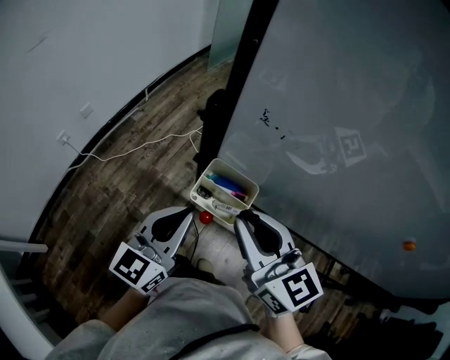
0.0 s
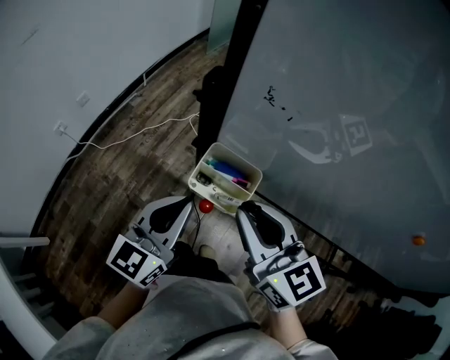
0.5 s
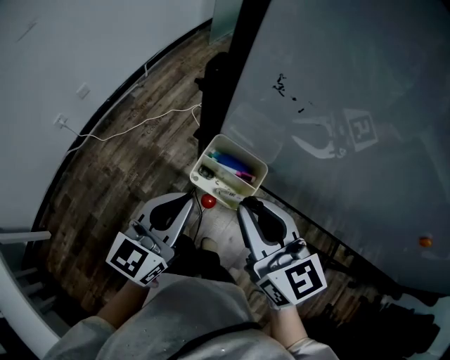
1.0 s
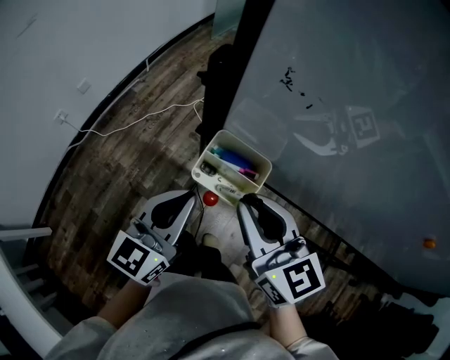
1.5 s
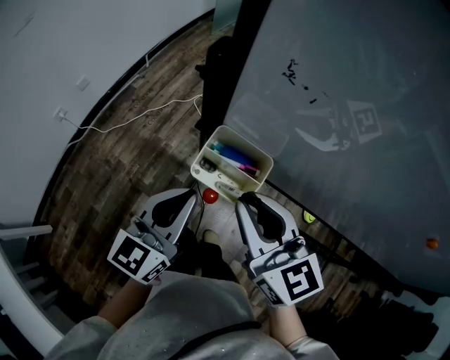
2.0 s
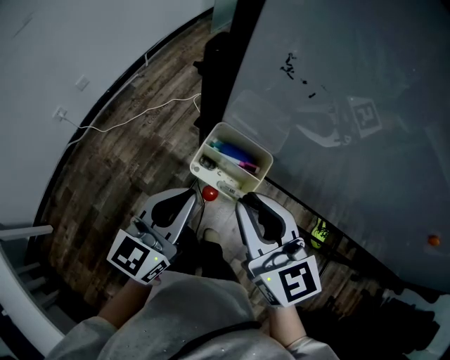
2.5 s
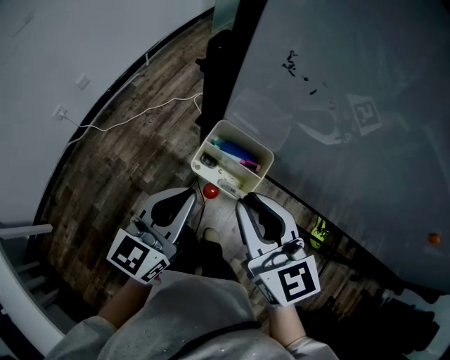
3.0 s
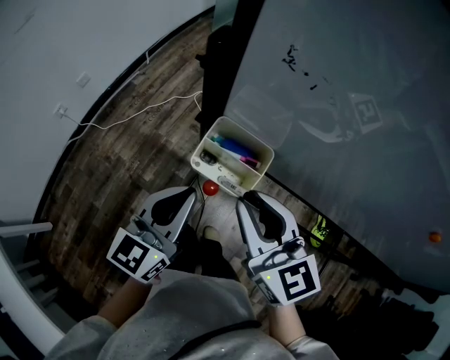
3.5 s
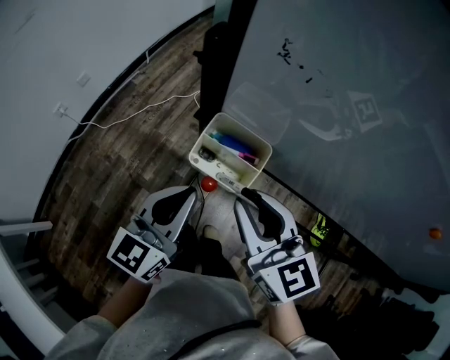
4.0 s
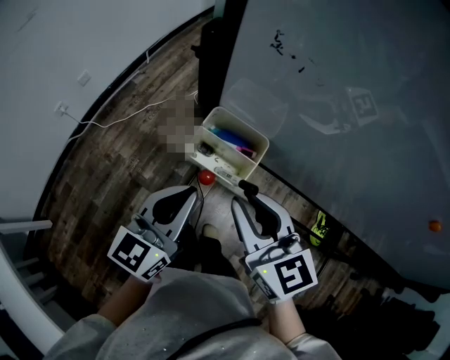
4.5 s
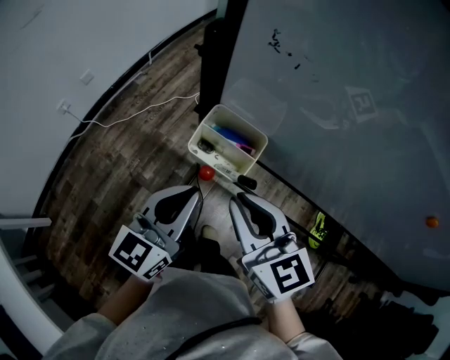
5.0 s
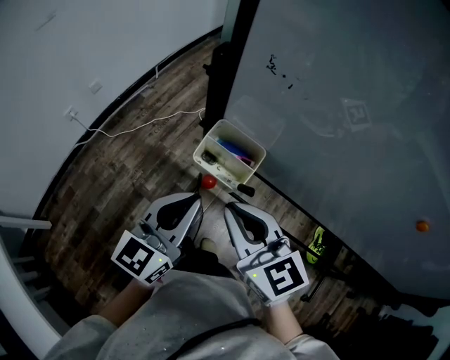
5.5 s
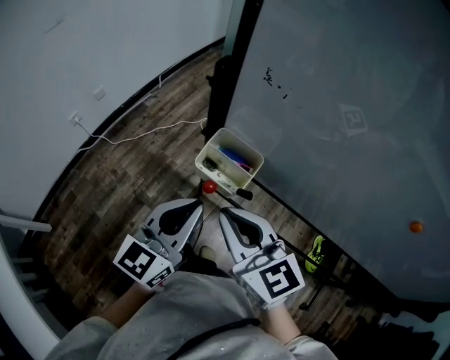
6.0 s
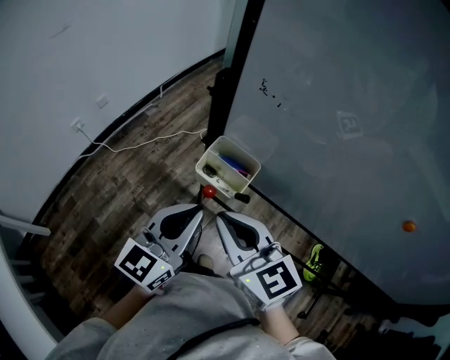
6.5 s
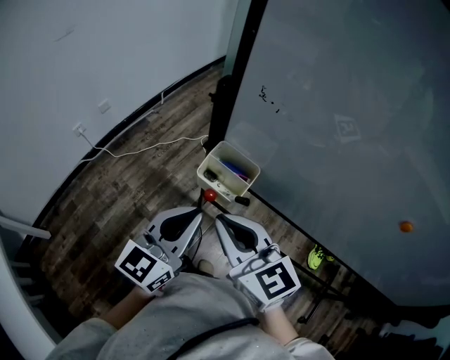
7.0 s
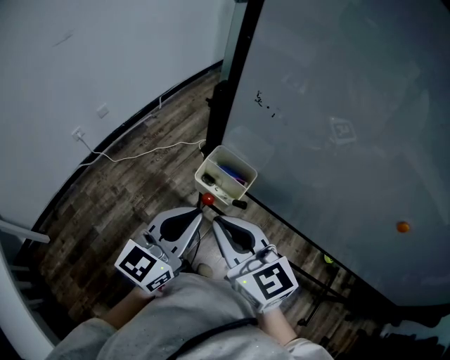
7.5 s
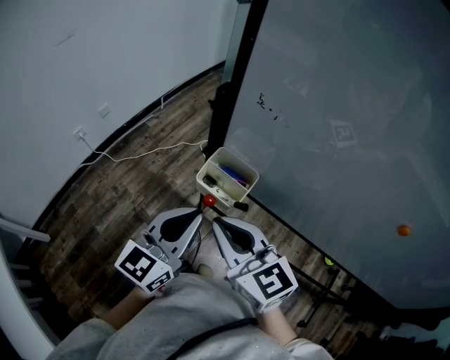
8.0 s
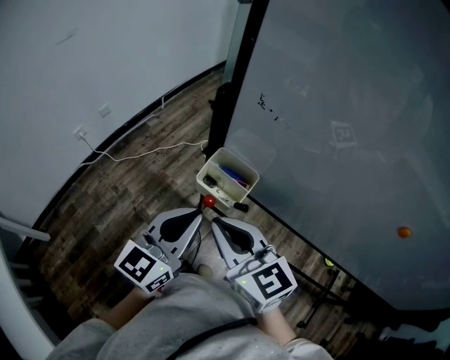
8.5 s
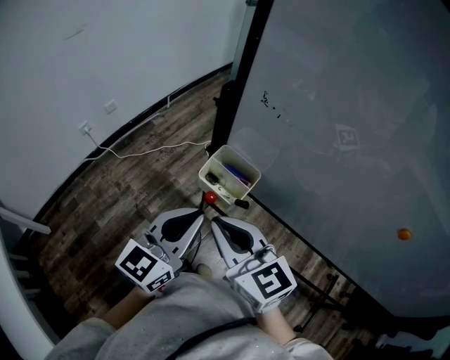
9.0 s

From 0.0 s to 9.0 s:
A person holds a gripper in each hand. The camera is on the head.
From 0.0 s to 2.0 s: The right gripper goes some 5 cm downward.
From 2.0 s to 4.5 s: The grippers move only a little.
From 4.5 s to 7.0 s: Both grippers move upward, some 5 cm.
From 7.0 s to 9.0 s: The two grippers keep their place.

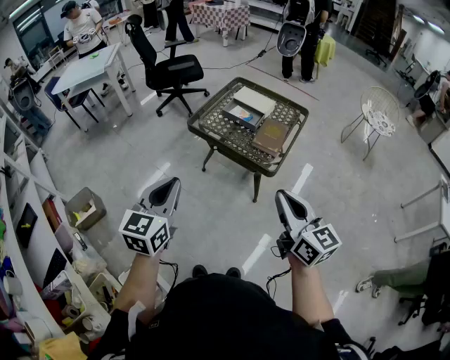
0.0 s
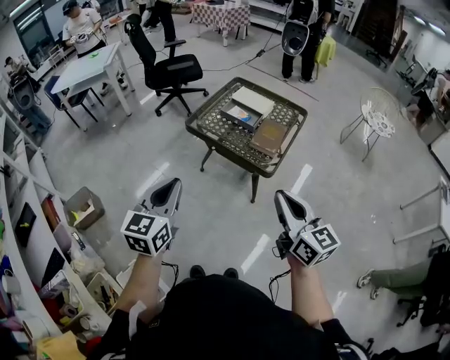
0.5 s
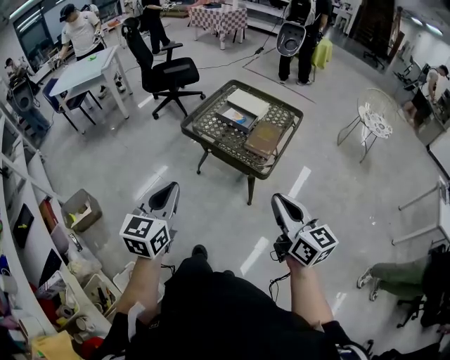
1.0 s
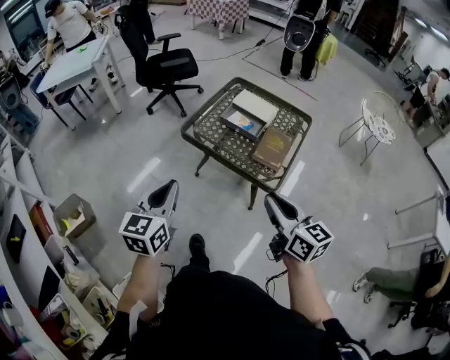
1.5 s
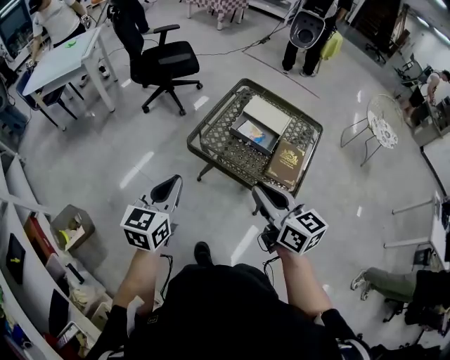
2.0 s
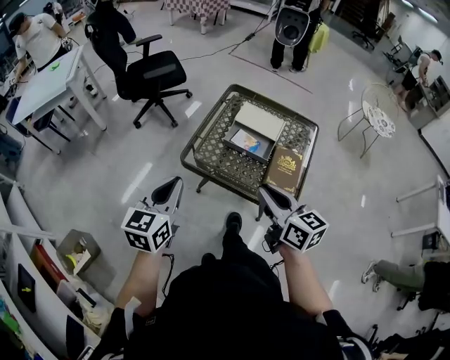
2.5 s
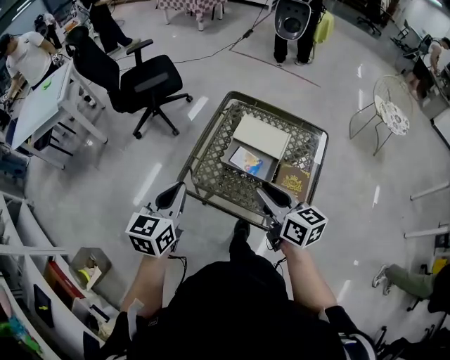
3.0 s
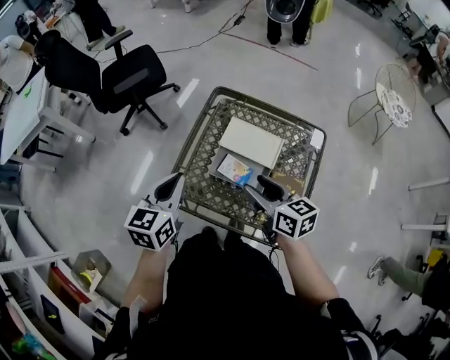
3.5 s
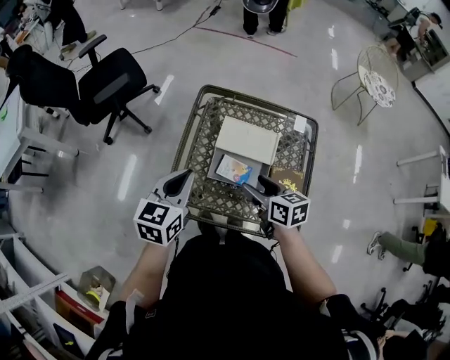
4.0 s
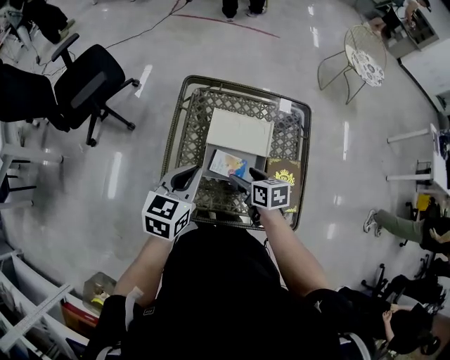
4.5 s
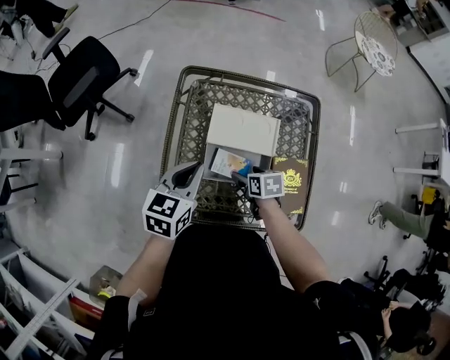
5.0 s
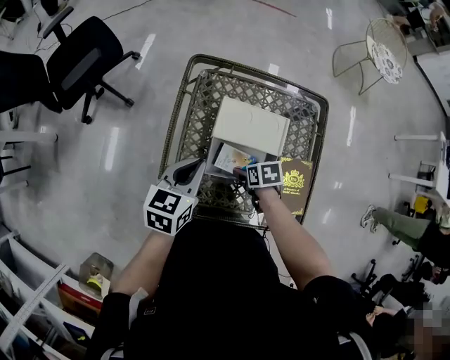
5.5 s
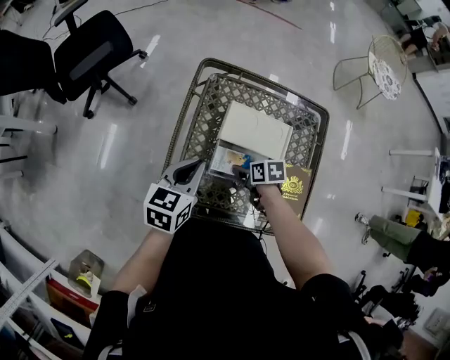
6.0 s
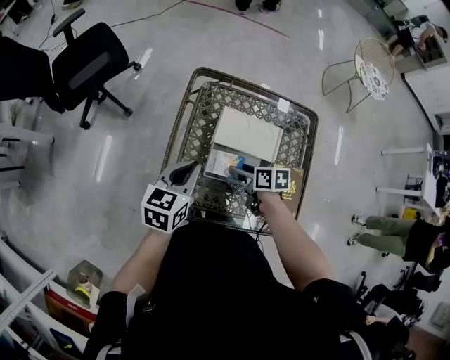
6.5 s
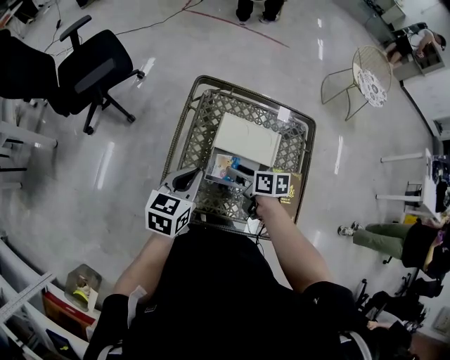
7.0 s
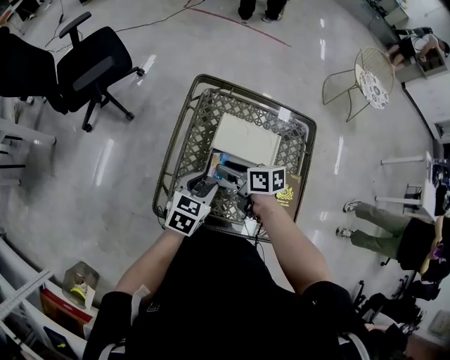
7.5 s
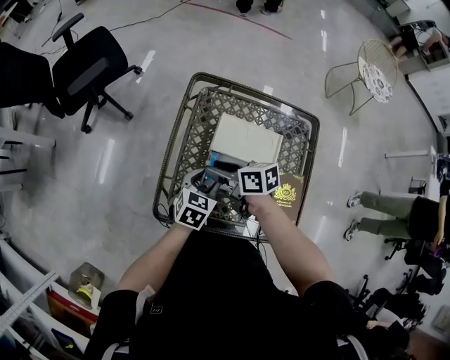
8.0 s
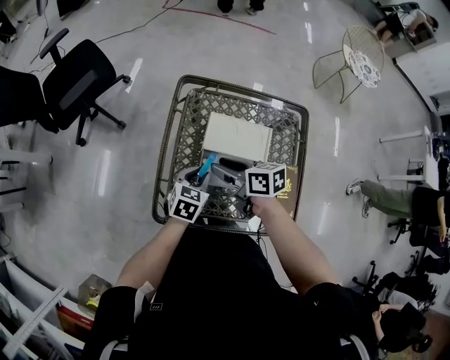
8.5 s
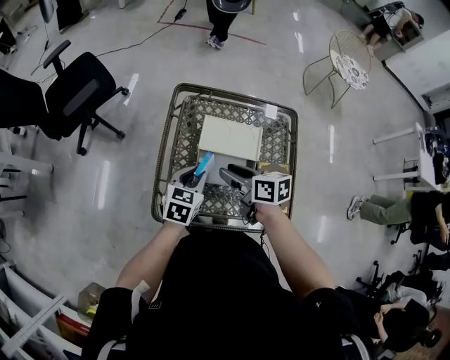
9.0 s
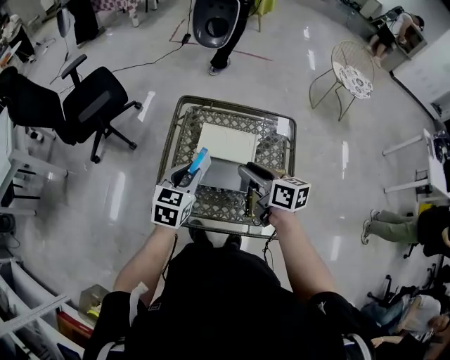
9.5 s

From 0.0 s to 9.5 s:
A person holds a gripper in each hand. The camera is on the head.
From 0.0 s to 2.0 s: The right gripper goes about 30 cm forward and to the left. The left gripper is displaced forward by approximately 25 cm.
From 2.0 s to 4.0 s: The right gripper travels forward and downward by approximately 35 cm, rotates roughly 30 degrees, and opens its fingers. The left gripper shifts about 35 cm forward, and changes its angle by approximately 20 degrees.
From 4.0 s to 5.5 s: The right gripper heads downward, covering approximately 20 cm, and angles its fingers downward, by some 40 degrees. Meanwhile the left gripper moves downward and forward, approximately 10 cm.
From 5.5 s to 7.5 s: The right gripper travels upward and to the left by some 15 cm, tips its fingers upward by roughly 40 degrees, and closes up, while the left gripper shifts by some 5 cm, and opens up.
From 7.5 s to 9.5 s: The right gripper shifts approximately 20 cm upward, to the right and backward, and swivels roughly 20 degrees, while the left gripper travels upward by about 10 cm.

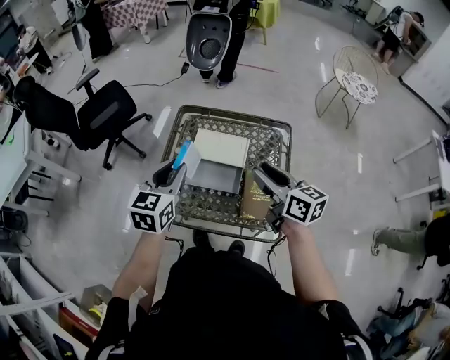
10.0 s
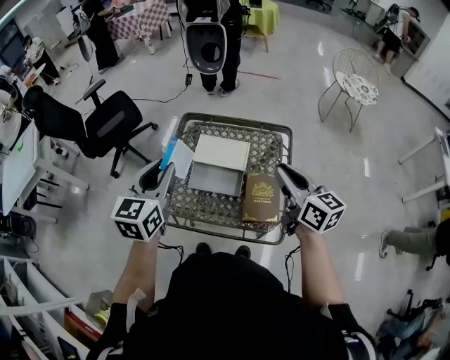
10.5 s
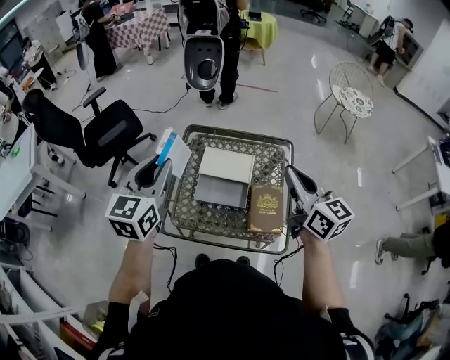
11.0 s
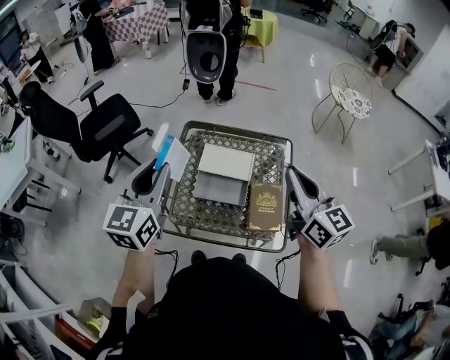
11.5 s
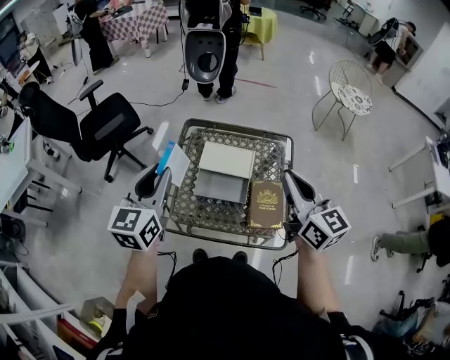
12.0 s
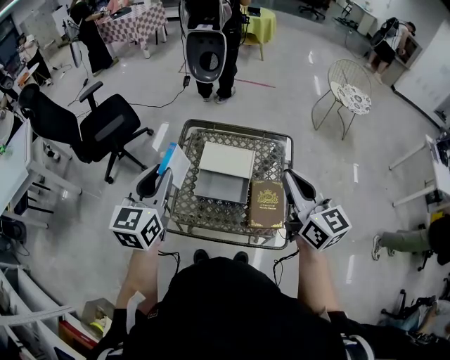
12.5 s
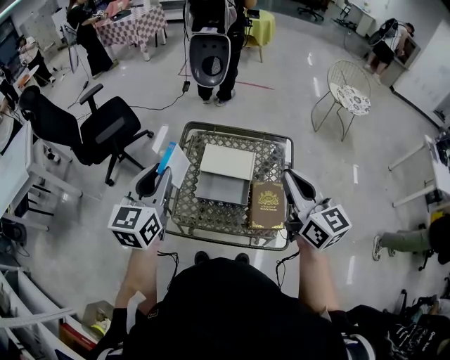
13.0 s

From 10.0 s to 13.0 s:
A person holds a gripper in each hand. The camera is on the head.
From 10.0 s to 11.5 s: The right gripper heads upward, covering about 15 cm, swivels some 30 degrees, and closes up. The left gripper shifts approximately 15 cm upward and to the left.
From 11.5 s to 13.0 s: The grippers stay close to where they were, moving slightly.

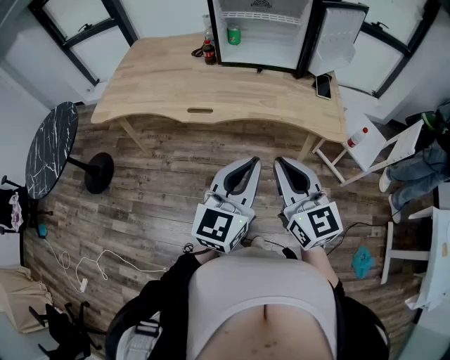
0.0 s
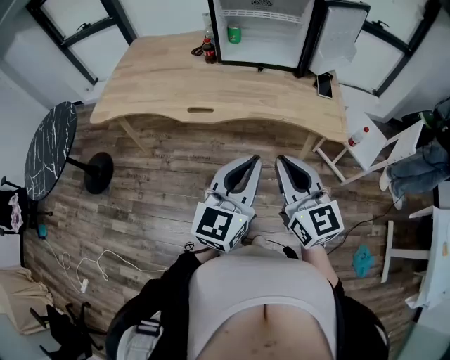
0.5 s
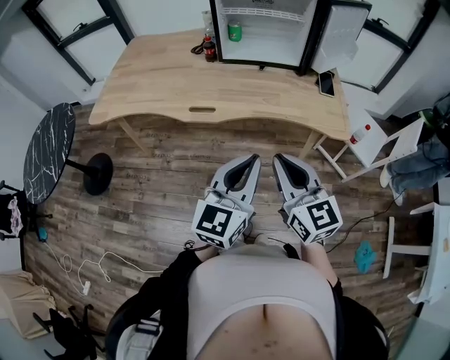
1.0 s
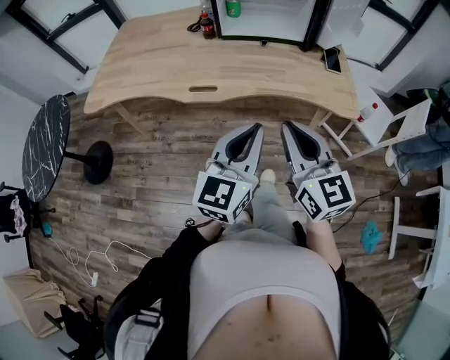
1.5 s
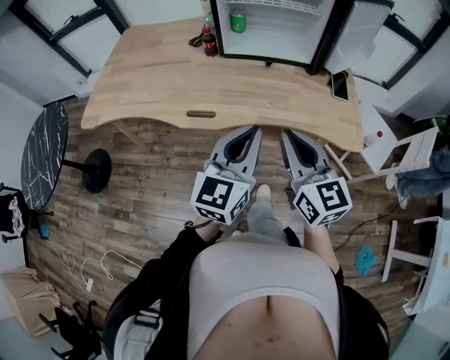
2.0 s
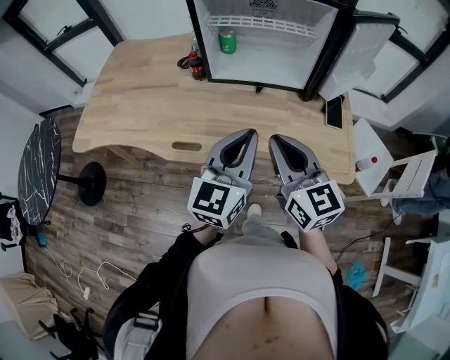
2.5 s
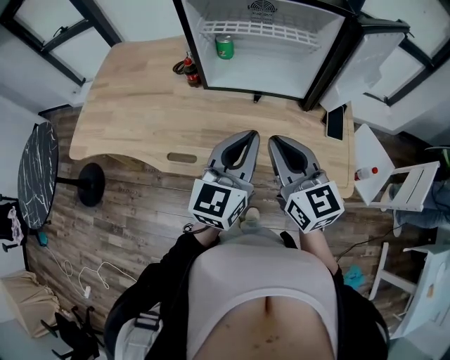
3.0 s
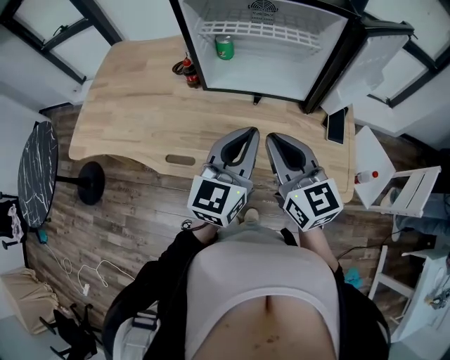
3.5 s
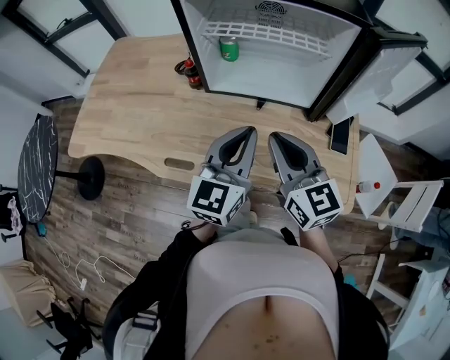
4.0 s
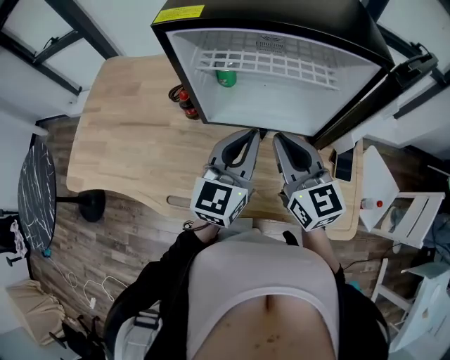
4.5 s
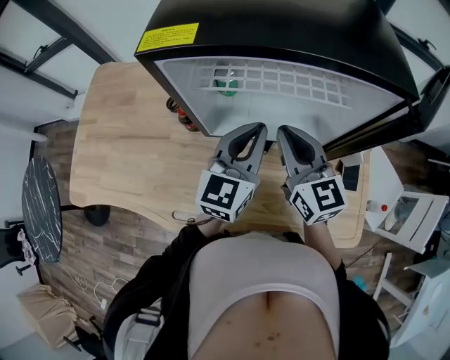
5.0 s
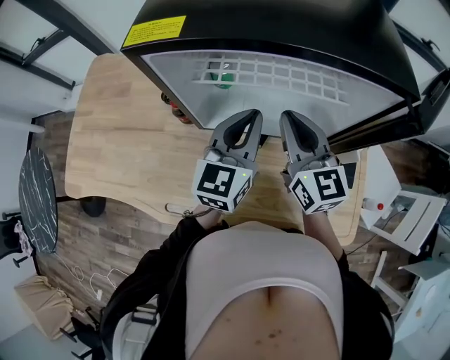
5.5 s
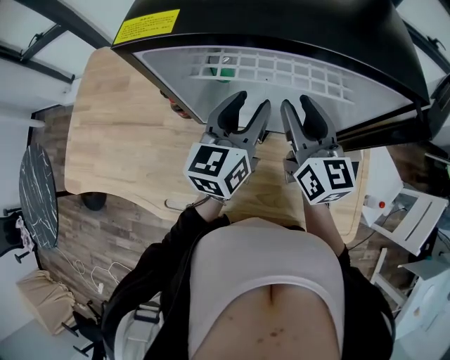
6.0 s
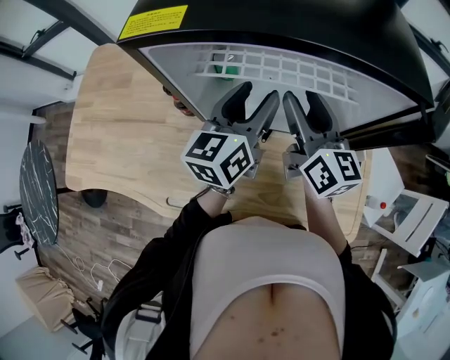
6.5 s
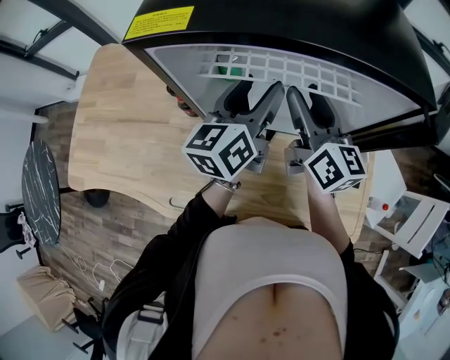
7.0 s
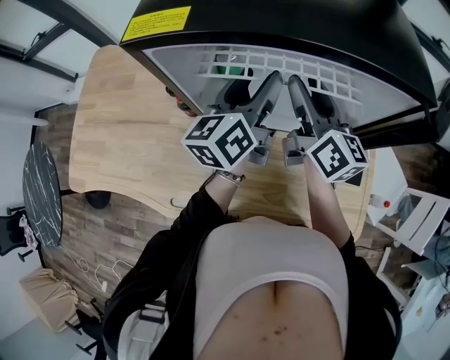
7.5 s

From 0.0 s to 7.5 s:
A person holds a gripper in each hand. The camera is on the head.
From 0.0 s to 2.0 s: Both grippers travel together forward, some 15 cm.
From 2.0 s to 4.0 s: The two grippers go some 20 cm forward.
From 4.0 s to 5.5 s: The two grippers go some 20 cm forward.
From 5.5 s to 7.5 s: The grippers both shift forward by about 5 cm. The left gripper changes its angle by roughly 30 degrees, and opens its fingers. The right gripper rotates approximately 30 degrees, and opens.
